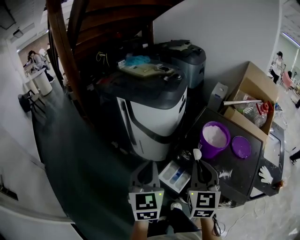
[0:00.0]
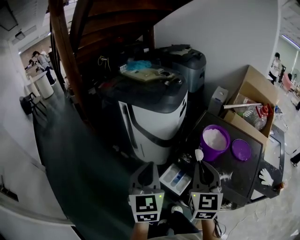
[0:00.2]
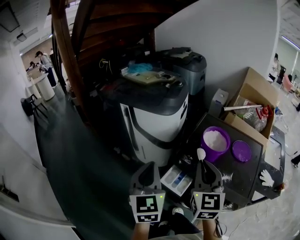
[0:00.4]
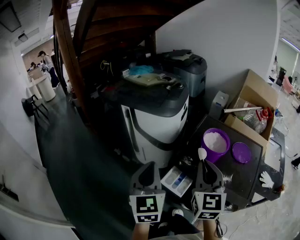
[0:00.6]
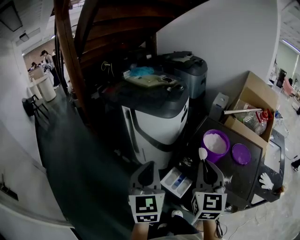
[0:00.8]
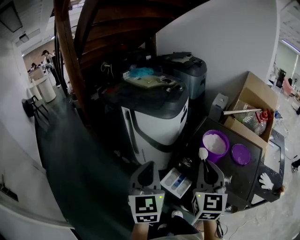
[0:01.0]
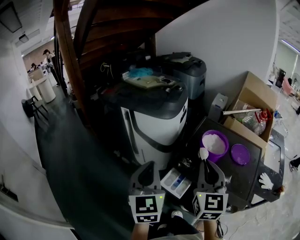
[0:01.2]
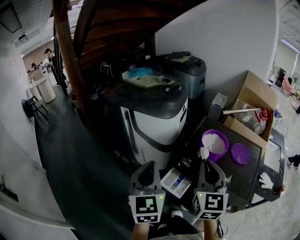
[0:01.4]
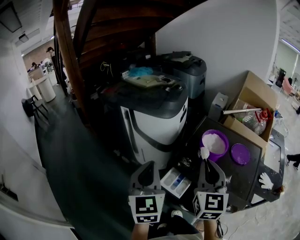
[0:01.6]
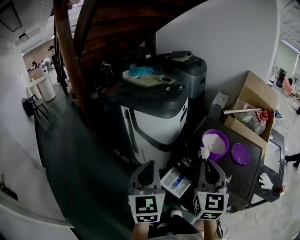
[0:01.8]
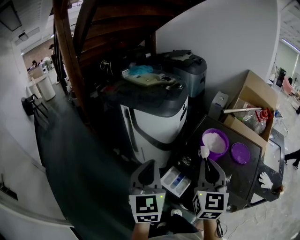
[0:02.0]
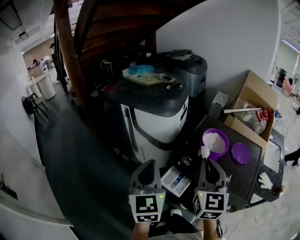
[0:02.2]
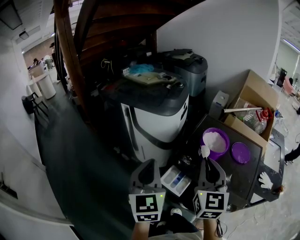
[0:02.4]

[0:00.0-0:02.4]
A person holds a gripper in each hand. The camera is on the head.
0:00.0 to 0:01.2: The right gripper goes about 5 cm upward.
0:01.2 to 0:02.4: The two grippers keep their place.

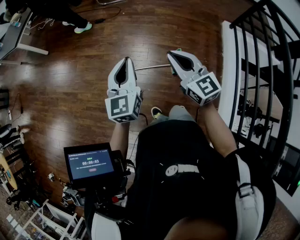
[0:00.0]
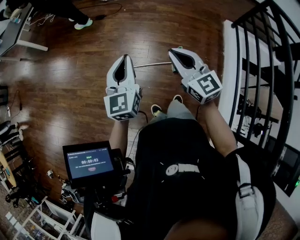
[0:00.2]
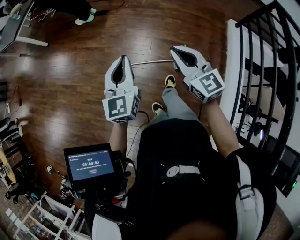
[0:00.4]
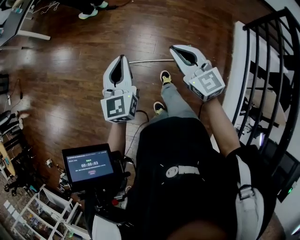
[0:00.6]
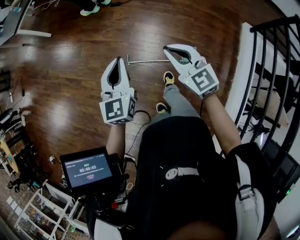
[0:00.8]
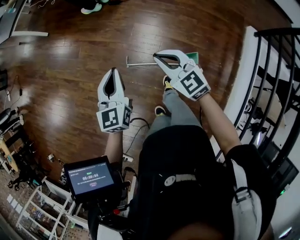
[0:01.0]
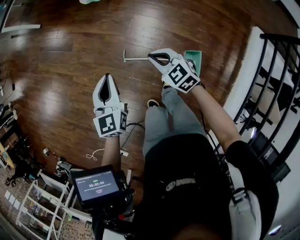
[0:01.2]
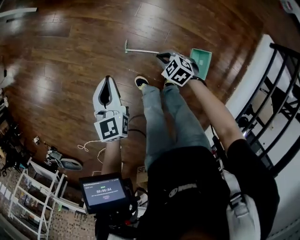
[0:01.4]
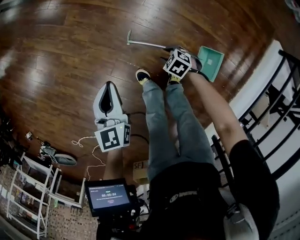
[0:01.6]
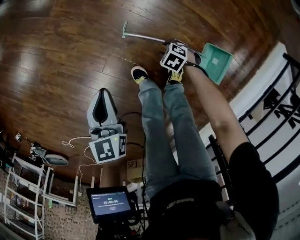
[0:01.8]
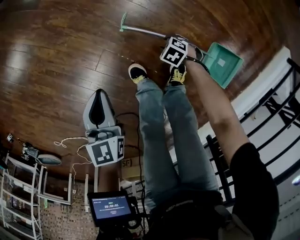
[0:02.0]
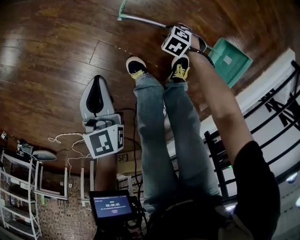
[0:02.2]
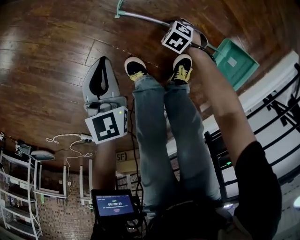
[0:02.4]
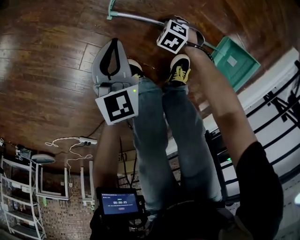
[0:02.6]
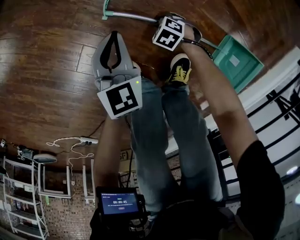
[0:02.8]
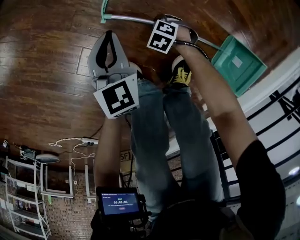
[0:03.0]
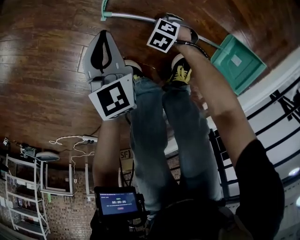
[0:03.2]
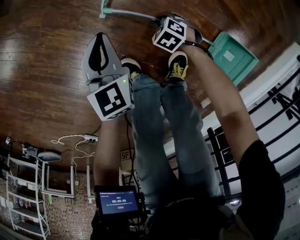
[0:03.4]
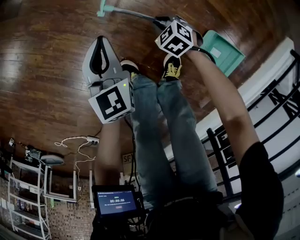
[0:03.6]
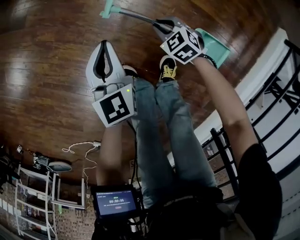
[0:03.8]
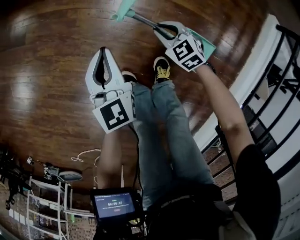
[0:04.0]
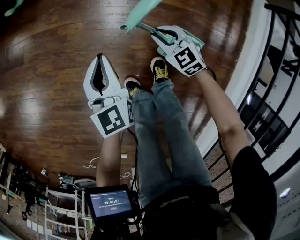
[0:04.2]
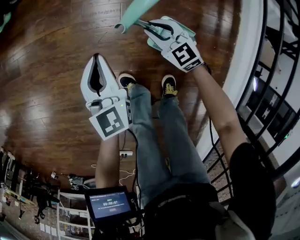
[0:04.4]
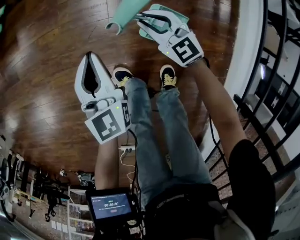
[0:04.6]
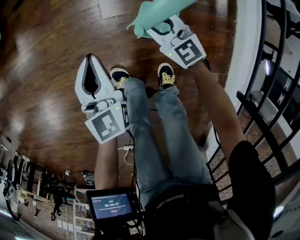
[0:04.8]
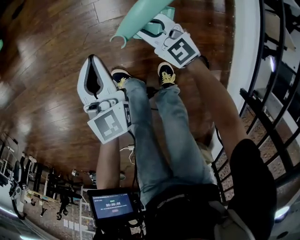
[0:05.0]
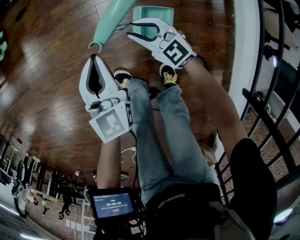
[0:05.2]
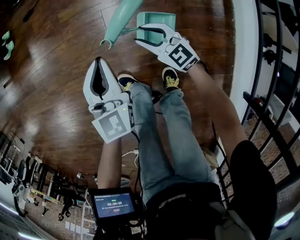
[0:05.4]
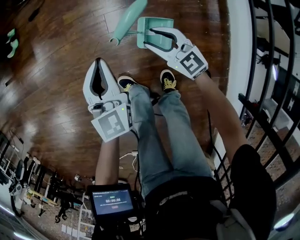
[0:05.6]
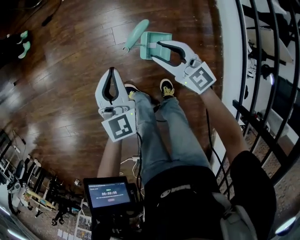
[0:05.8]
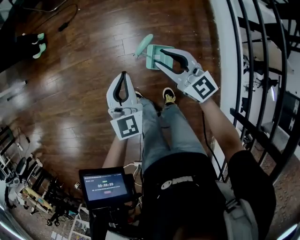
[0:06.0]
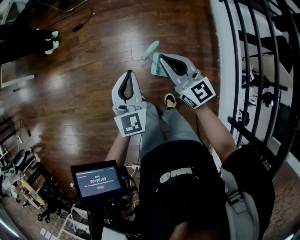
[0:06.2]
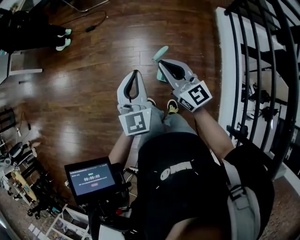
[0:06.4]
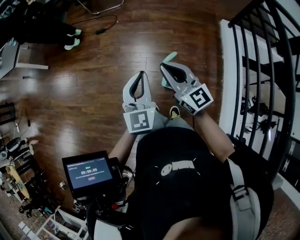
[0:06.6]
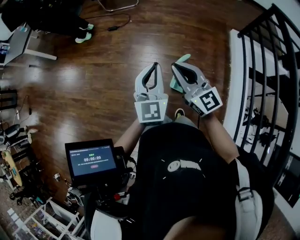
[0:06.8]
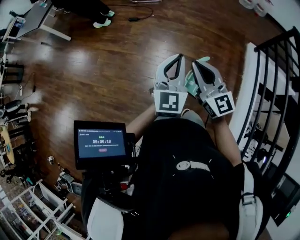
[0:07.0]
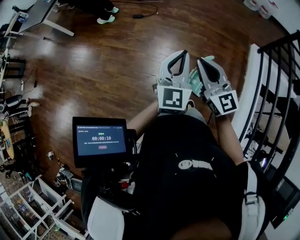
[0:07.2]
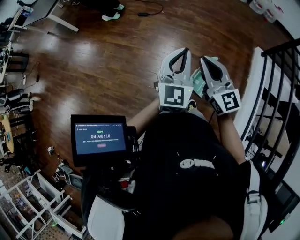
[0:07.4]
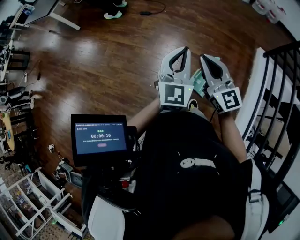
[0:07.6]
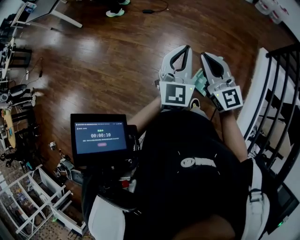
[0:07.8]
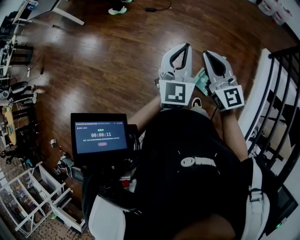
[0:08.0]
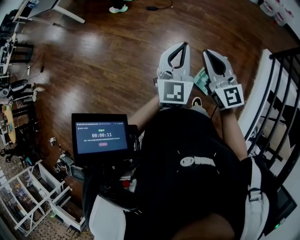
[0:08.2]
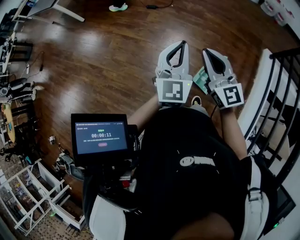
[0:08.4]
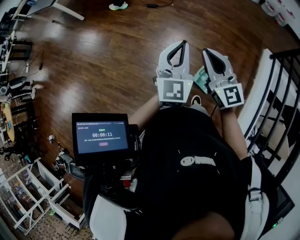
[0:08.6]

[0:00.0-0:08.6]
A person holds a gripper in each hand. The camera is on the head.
0:00.0 to 0:01.4: The right gripper is displaced downward by about 40 cm, and angles its fingers downward, by about 50 degrees. Meanwhile the left gripper moves downward, approximately 25 cm, and rotates some 30 degrees.
0:01.4 to 0:02.8: Both grippers travel together downward, about 50 cm. The right gripper swivels about 30 degrees, and opens its fingers.
0:02.8 to 0:04.4: The grippers both shift upward by about 35 cm. The left gripper rotates approximately 30 degrees. The right gripper angles its fingers upward, by roughly 40 degrees.
0:04.4 to 0:05.8: The left gripper heads to the right, upward and backward, covering approximately 20 cm, and rotates about 20 degrees. Meanwhile the right gripper goes approximately 25 cm upward, backward and to the right, rotates about 30 degrees, and opens its fingers.
0:05.8 to 0:07.2: The left gripper shifts approximately 30 cm upward. The right gripper moves upward and to the left, roughly 40 cm, and closes its fingers.
0:07.2 to 0:08.6: The grippers make only small movements.

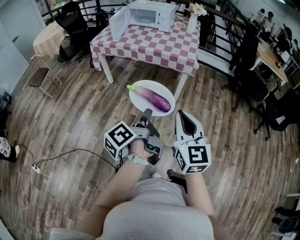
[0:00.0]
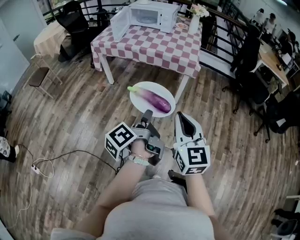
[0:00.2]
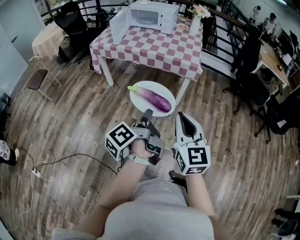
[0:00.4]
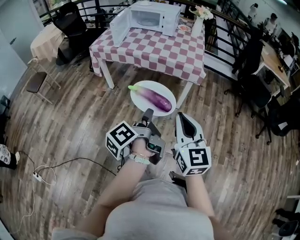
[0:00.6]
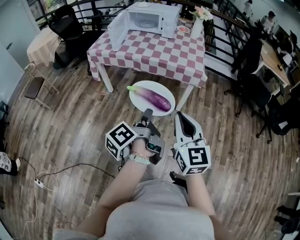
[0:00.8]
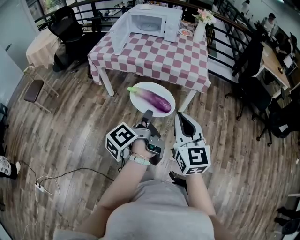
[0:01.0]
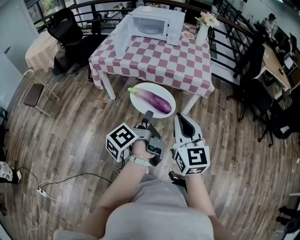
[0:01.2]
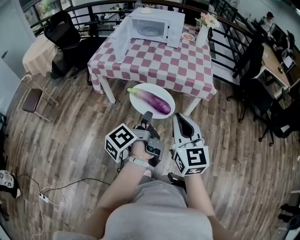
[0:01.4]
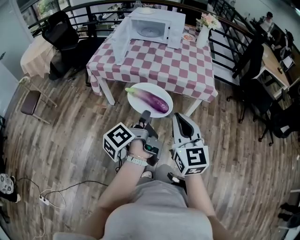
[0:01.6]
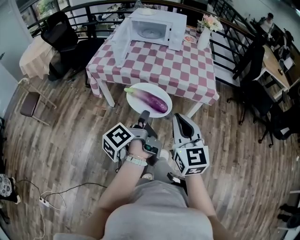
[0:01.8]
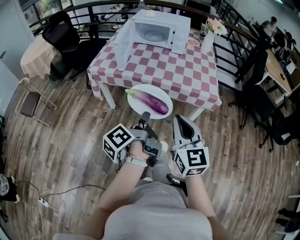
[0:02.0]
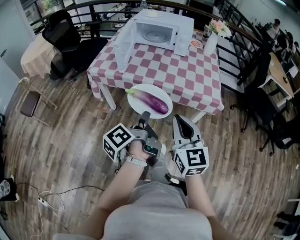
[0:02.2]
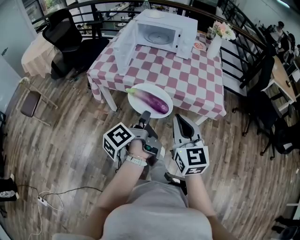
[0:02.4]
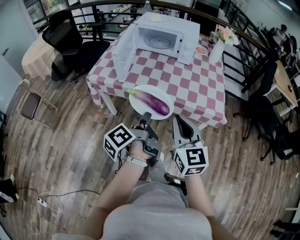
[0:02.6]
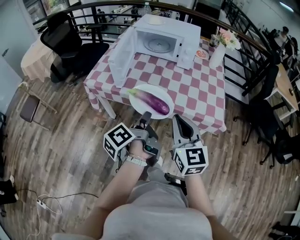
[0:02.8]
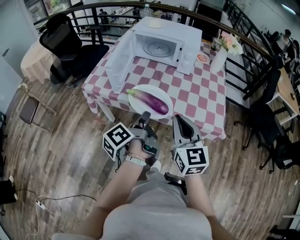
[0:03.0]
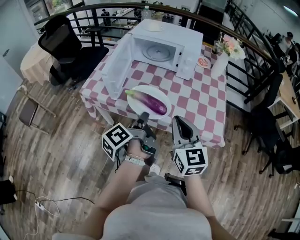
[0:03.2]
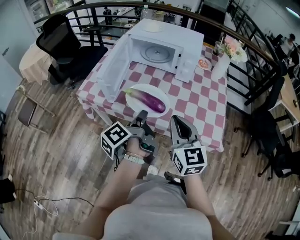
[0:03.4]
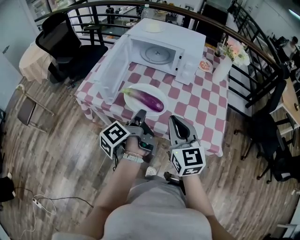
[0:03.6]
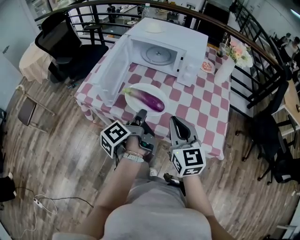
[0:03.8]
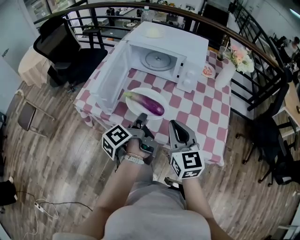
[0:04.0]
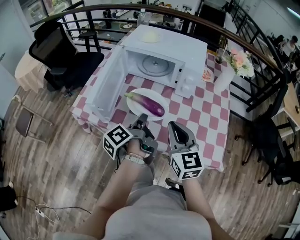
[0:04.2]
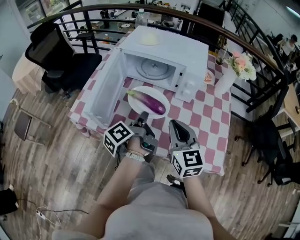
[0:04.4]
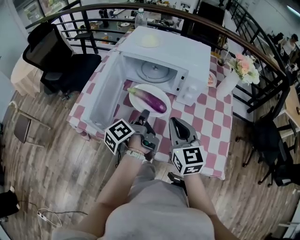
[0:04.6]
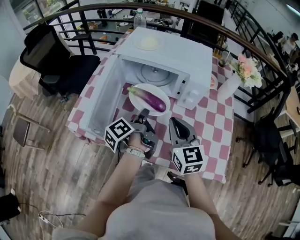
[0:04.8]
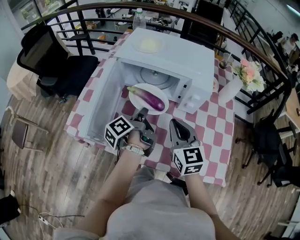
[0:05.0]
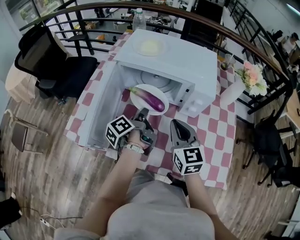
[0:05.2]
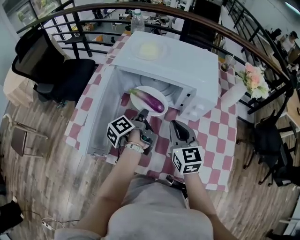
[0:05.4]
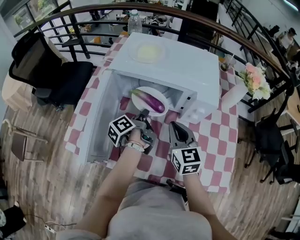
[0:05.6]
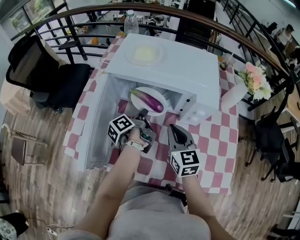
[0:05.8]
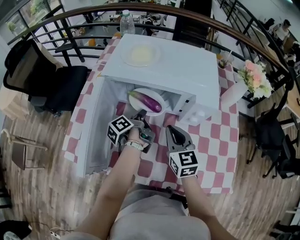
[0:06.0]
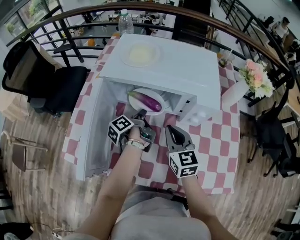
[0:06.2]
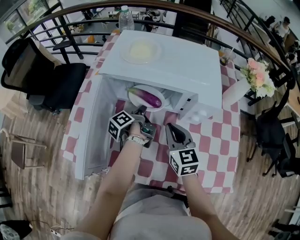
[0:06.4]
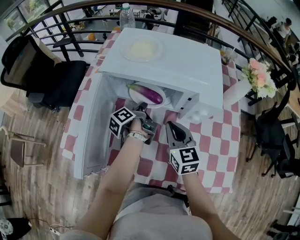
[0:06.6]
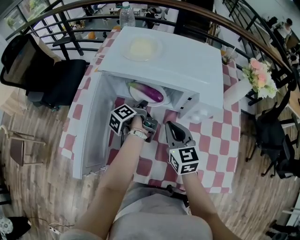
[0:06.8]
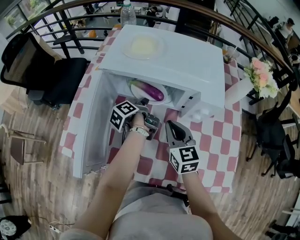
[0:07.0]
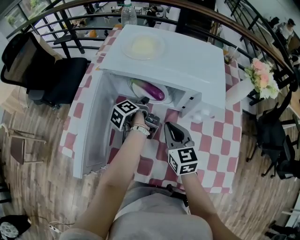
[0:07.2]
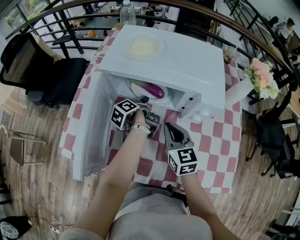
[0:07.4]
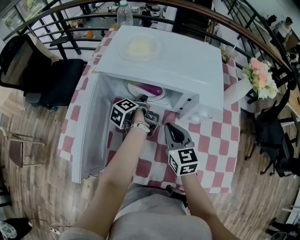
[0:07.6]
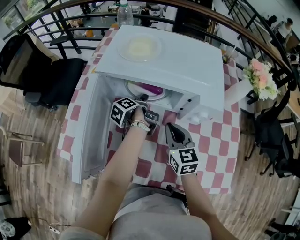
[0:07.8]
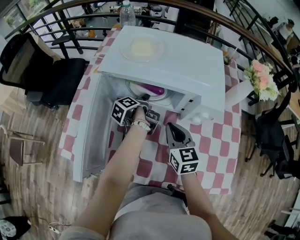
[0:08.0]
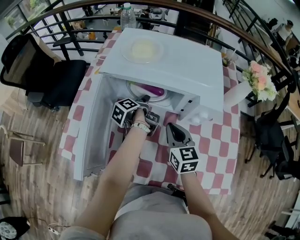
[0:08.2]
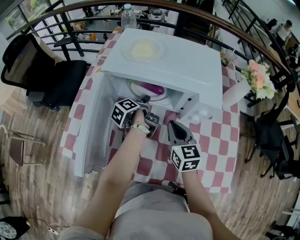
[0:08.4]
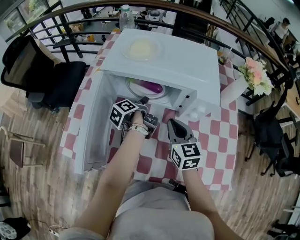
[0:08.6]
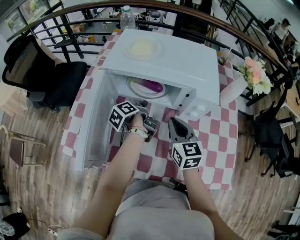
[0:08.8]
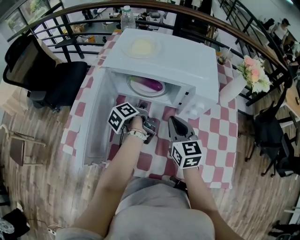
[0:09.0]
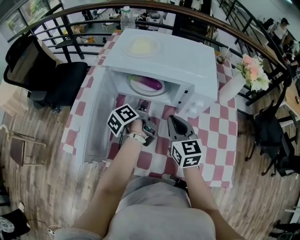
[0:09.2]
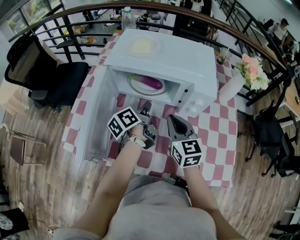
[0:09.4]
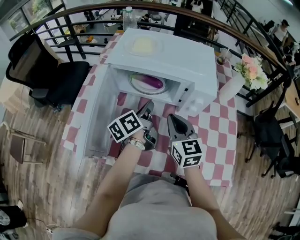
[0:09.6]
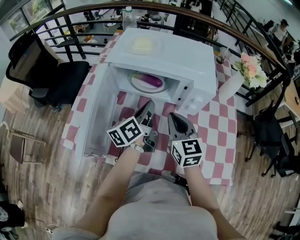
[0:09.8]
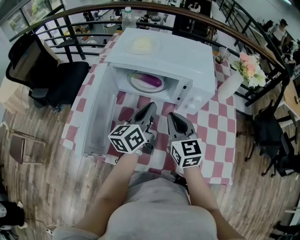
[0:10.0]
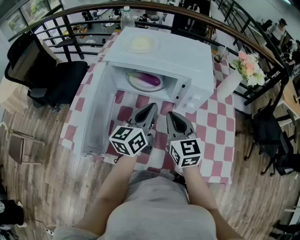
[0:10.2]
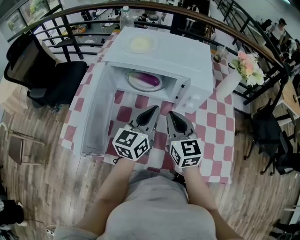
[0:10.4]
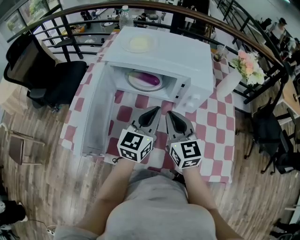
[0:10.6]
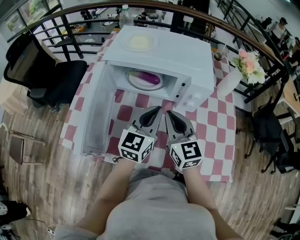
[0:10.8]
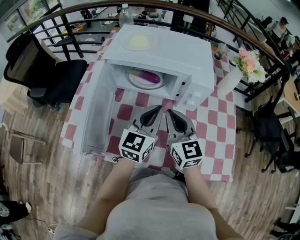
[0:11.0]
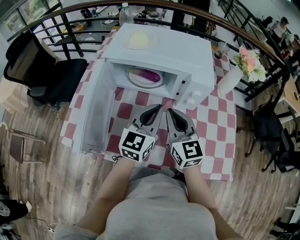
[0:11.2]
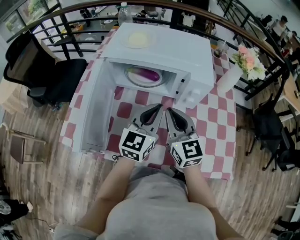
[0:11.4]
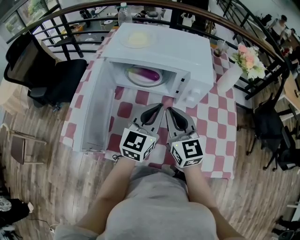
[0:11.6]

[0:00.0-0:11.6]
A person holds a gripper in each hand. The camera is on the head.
0:00.0 to 0:01.4: The right gripper moves approximately 30 cm.
0:01.4 to 0:02.8: The right gripper moves about 25 cm.
0:02.8 to 0:04.4: The right gripper changes place by about 30 cm.
0:04.4 to 0:05.8: The right gripper moves approximately 20 cm.
0:08.8 to 0:10.2: The right gripper moves some 5 cm.

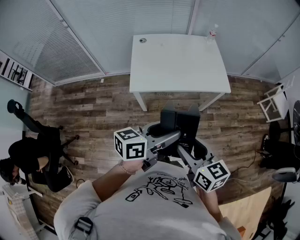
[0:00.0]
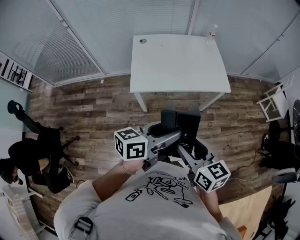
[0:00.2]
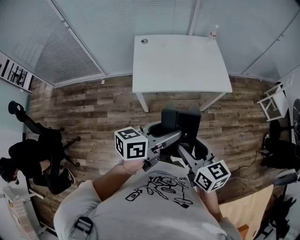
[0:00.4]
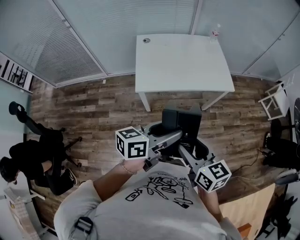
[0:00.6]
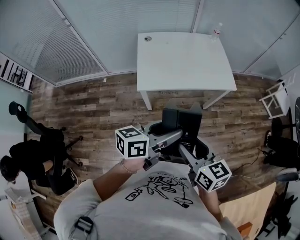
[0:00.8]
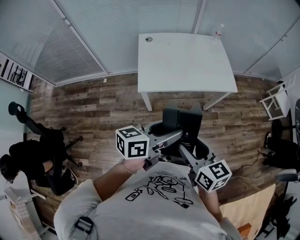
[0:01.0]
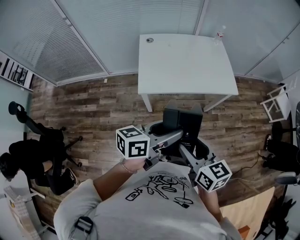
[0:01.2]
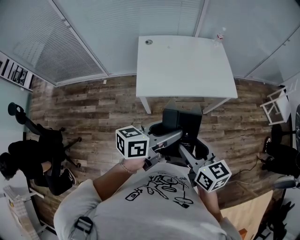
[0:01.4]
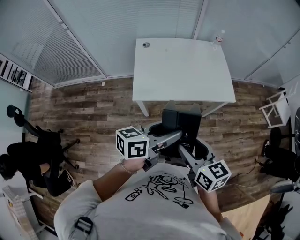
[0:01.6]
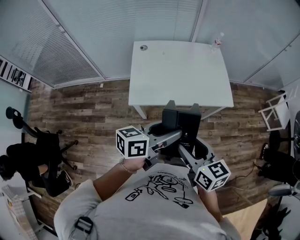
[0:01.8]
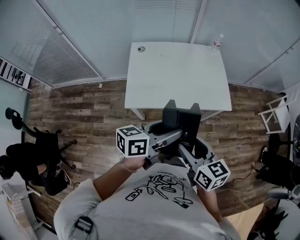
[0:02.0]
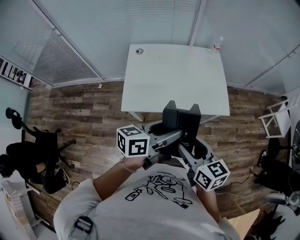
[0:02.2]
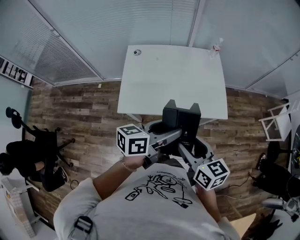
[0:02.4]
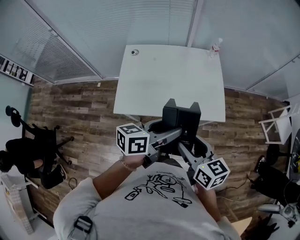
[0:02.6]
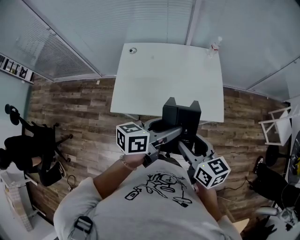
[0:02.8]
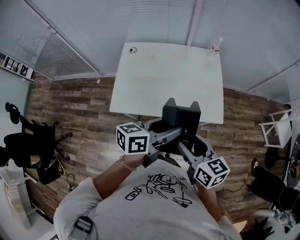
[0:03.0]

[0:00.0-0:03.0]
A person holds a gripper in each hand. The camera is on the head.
0:00.0 to 0:01.6: Both grippers move forward, some 5 cm.
0:01.6 to 0:03.0: The two grippers go roughly 25 cm forward and to the right.
